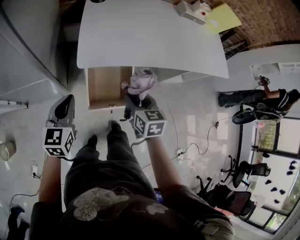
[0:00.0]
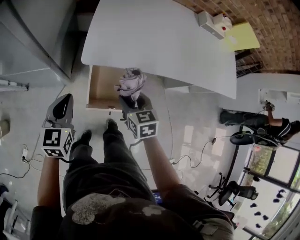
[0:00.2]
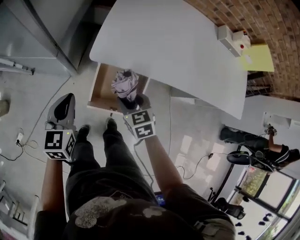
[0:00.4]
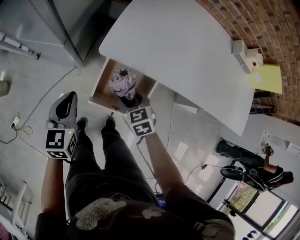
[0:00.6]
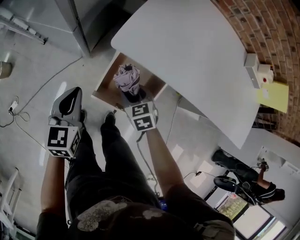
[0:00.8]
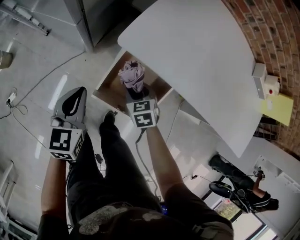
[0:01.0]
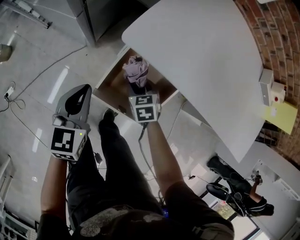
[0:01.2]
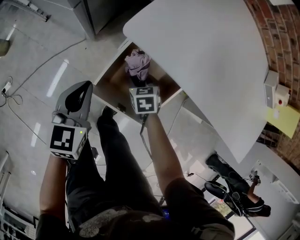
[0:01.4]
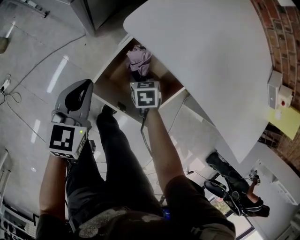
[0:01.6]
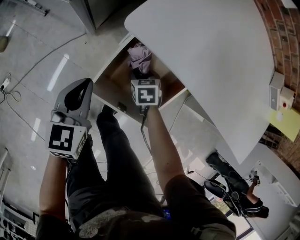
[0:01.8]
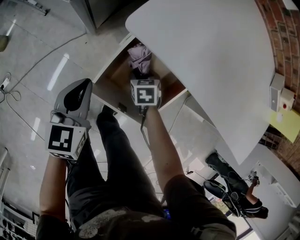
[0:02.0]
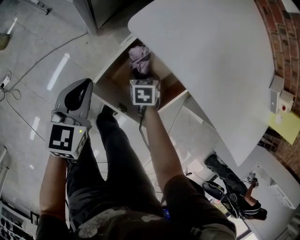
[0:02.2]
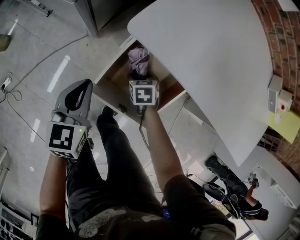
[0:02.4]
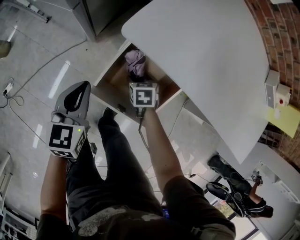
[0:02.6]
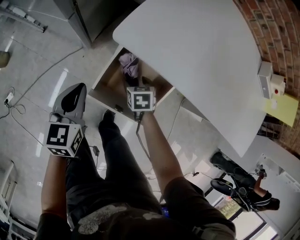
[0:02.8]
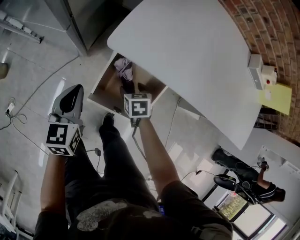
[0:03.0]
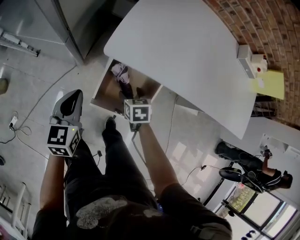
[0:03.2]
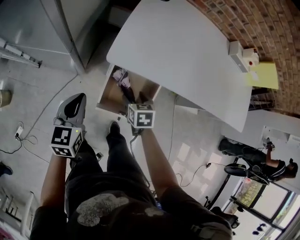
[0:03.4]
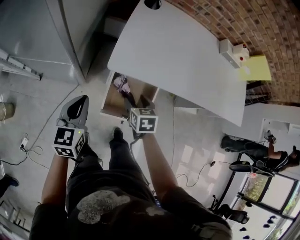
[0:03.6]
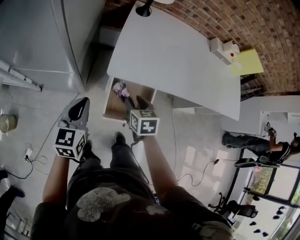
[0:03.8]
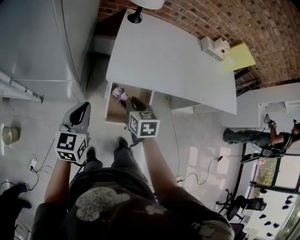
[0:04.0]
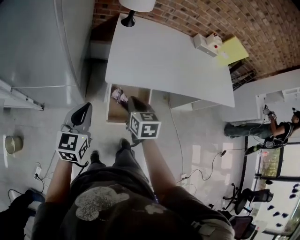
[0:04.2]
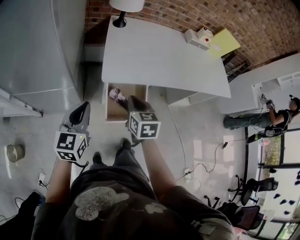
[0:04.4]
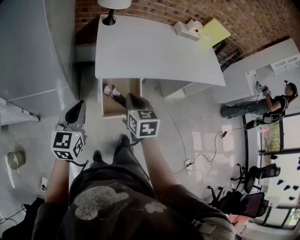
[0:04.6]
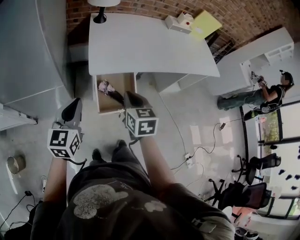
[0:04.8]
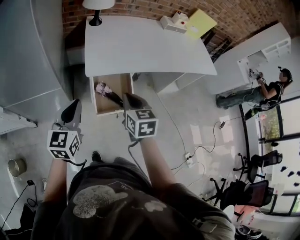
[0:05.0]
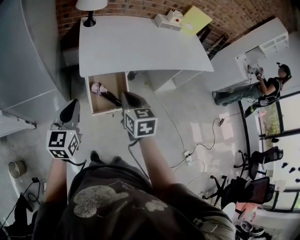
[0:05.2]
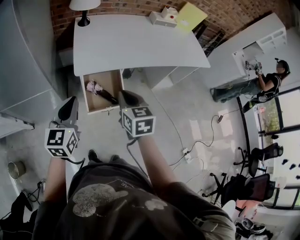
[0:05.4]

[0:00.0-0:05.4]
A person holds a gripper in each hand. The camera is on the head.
0:00.0 to 0:01.4: The left gripper goes approximately 15 cm downward, and swivels roughly 30 degrees; the right gripper shifts approximately 30 cm downward, and swivels roughly 50 degrees.
0:01.4 to 0:02.8: The grippers make only small movements.
0:02.8 to 0:04.0: The right gripper travels upward by approximately 30 cm, turns by about 40 degrees, and closes up. Meanwhile the left gripper moves upward, roughly 20 cm, and rotates roughly 30 degrees.
0:04.0 to 0:05.4: The right gripper shifts about 20 cm upward, backward and to the right. Meanwhile the left gripper shifts roughly 15 cm upward, to the right and backward.

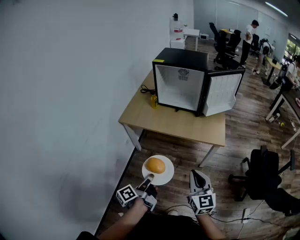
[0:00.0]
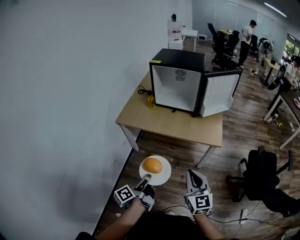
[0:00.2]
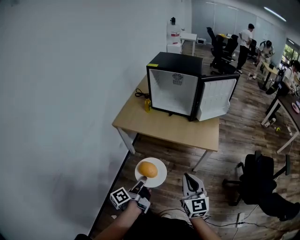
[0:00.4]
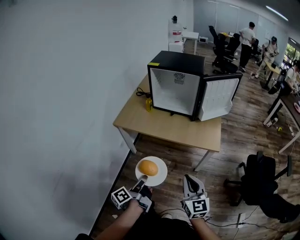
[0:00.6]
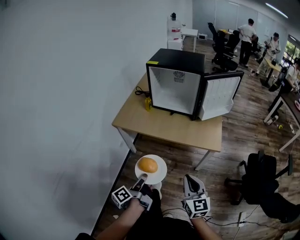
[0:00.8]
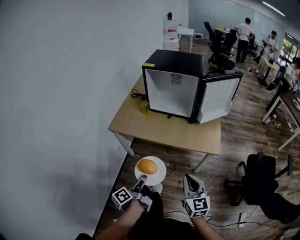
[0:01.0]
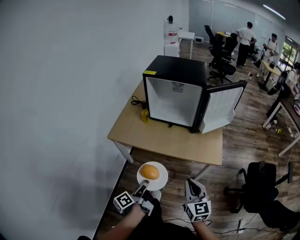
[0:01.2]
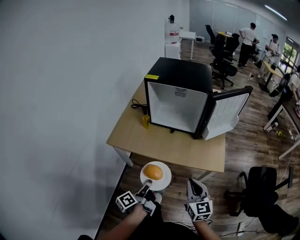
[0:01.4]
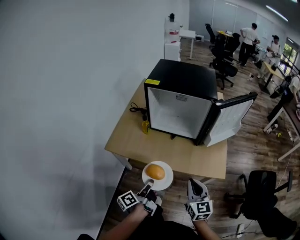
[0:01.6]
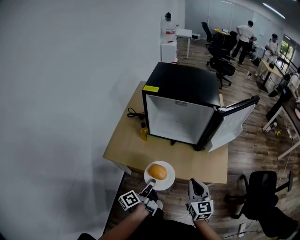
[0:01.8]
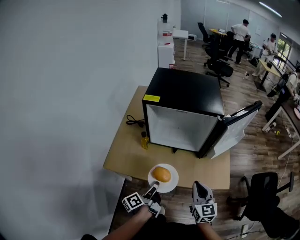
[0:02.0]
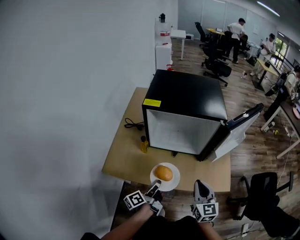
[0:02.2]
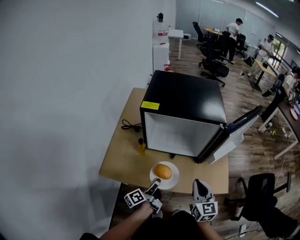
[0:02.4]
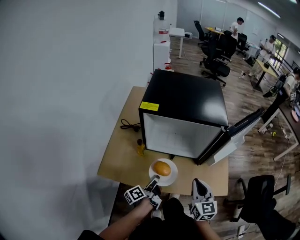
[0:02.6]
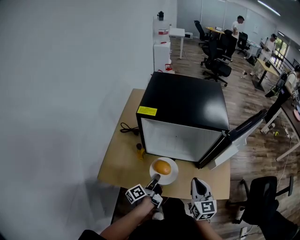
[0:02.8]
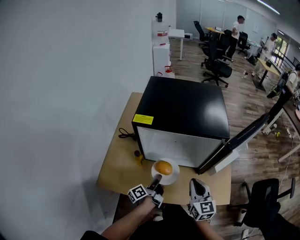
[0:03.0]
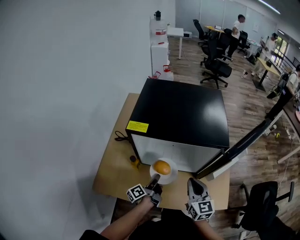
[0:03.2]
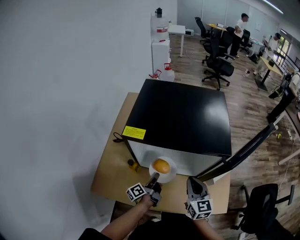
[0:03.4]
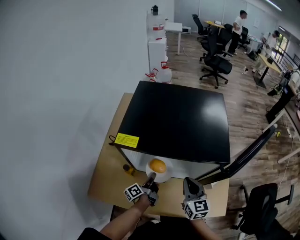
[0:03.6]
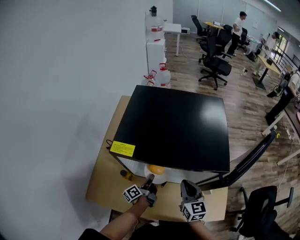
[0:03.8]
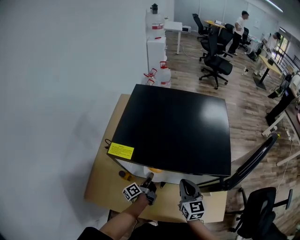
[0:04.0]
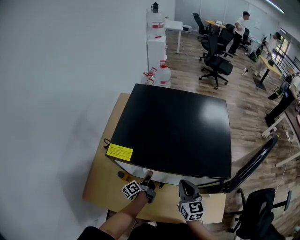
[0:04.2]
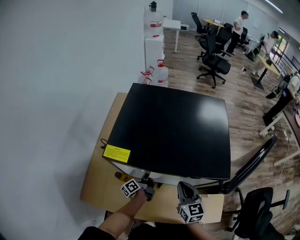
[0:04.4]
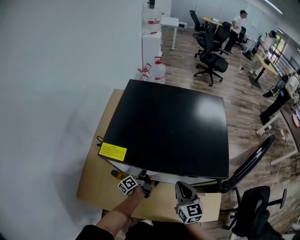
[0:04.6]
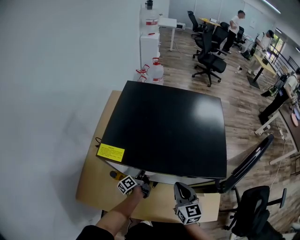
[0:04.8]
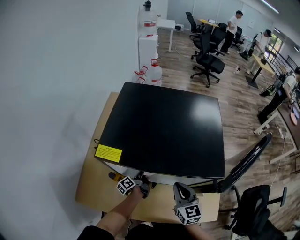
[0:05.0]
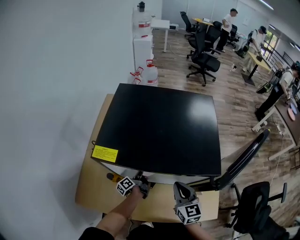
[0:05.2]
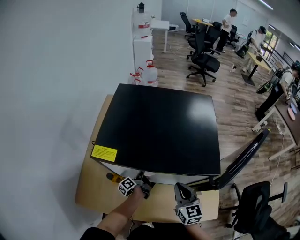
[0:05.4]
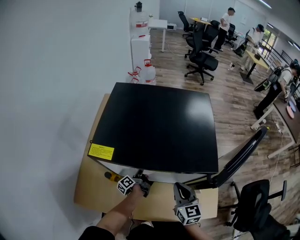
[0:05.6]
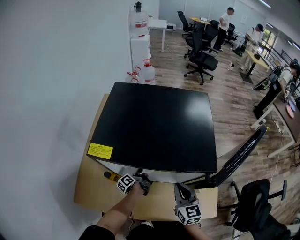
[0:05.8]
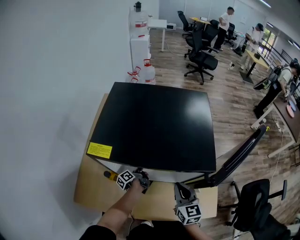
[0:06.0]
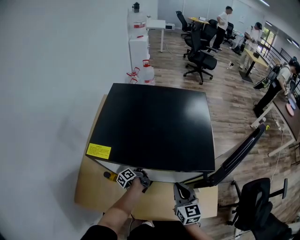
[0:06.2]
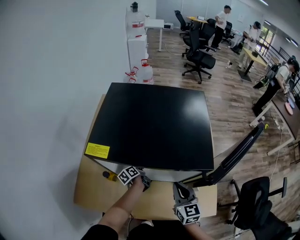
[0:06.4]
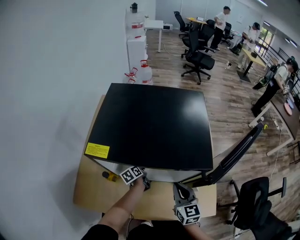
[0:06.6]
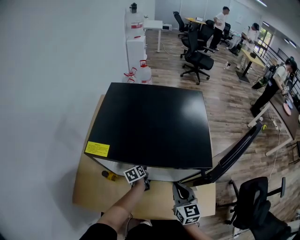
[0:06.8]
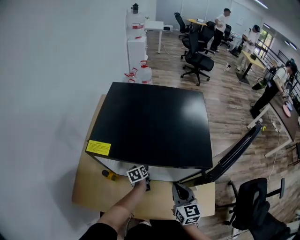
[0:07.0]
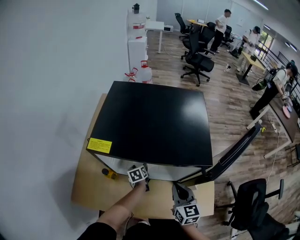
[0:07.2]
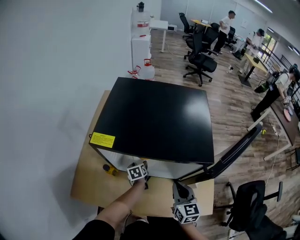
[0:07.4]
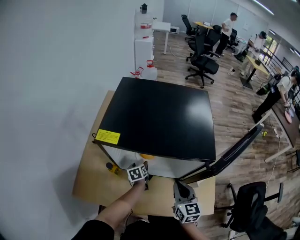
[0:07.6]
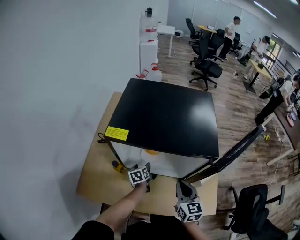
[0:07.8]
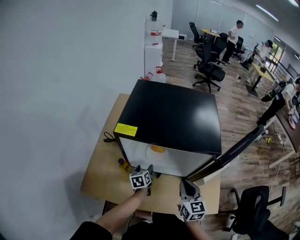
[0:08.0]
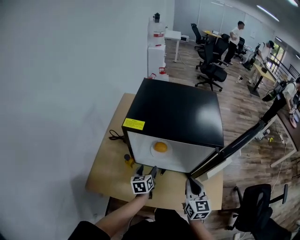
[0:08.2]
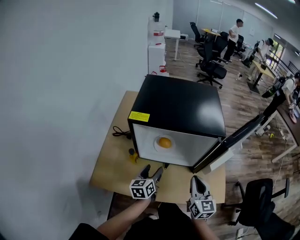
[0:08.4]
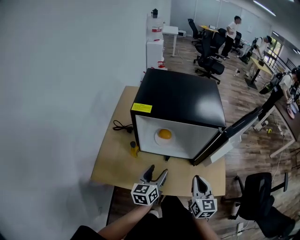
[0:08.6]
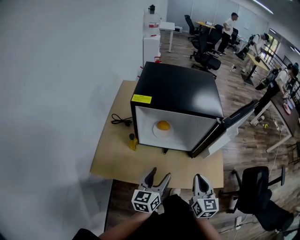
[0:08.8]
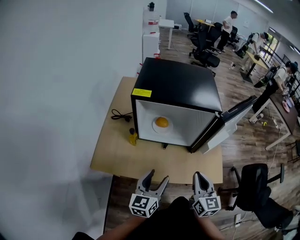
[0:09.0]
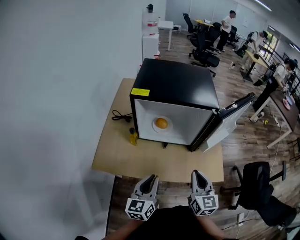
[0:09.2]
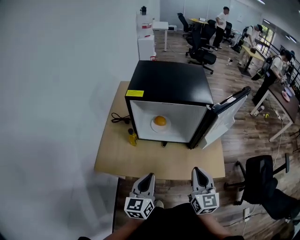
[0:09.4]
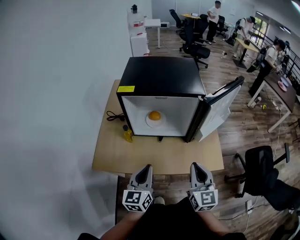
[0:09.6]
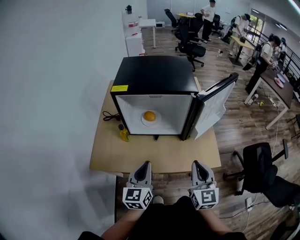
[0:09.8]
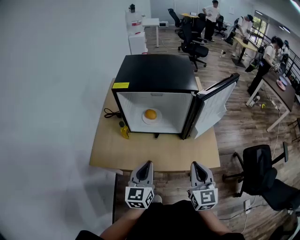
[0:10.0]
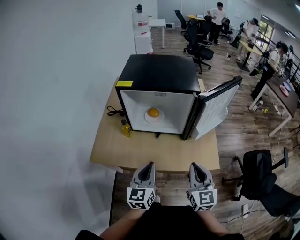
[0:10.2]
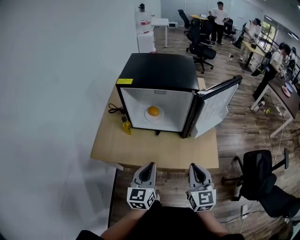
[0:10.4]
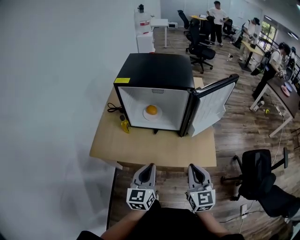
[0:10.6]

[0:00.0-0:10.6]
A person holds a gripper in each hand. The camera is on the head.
0:00.0 to 0:01.6: The grippers both shift forward by approximately 25 cm.
0:01.6 to 0:03.0: The grippers both shift forward by some 25 cm.
0:03.0 to 0:04.6: The left gripper is displaced forward and downward by some 20 cm. The right gripper goes approximately 15 cm forward.
0:04.6 to 0:06.0: The grippers stay close to where they were, moving slightly.
0:06.0 to 0:07.6: The left gripper twists about 50 degrees clockwise, seen from behind, and opens.
0:07.6 to 0:09.0: The right gripper moves backward, roughly 20 cm. The left gripper shifts some 40 cm backward and upward, and angles its fingers upward, by roughly 40 degrees.
0:09.0 to 0:10.6: The grippers both shift backward and to the right by roughly 10 cm. The left gripper closes up.

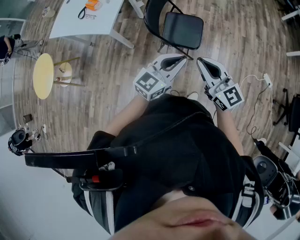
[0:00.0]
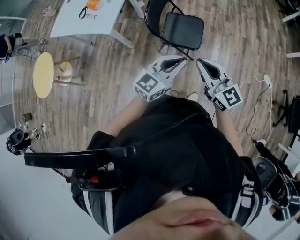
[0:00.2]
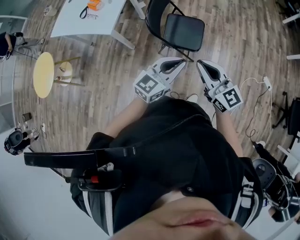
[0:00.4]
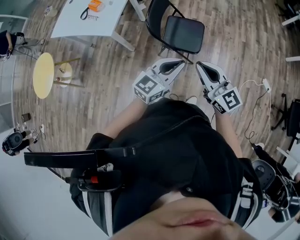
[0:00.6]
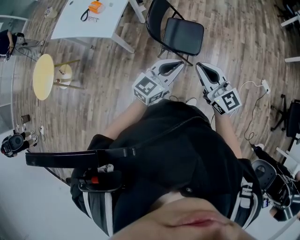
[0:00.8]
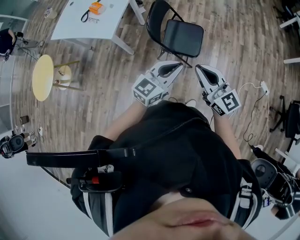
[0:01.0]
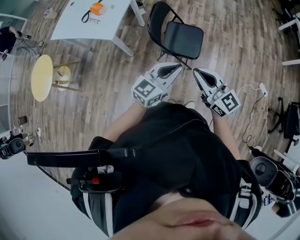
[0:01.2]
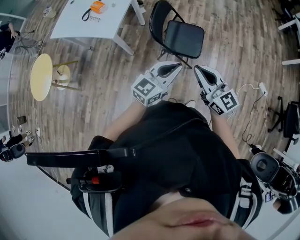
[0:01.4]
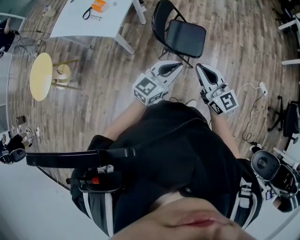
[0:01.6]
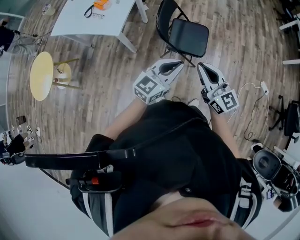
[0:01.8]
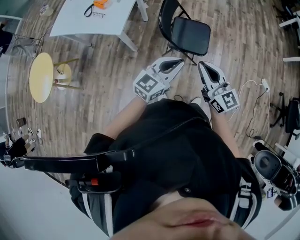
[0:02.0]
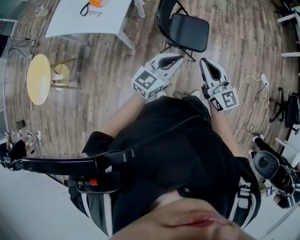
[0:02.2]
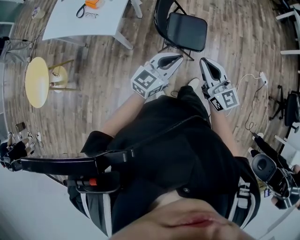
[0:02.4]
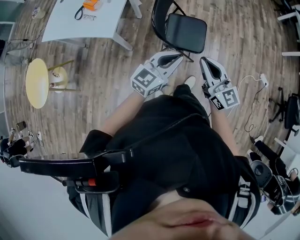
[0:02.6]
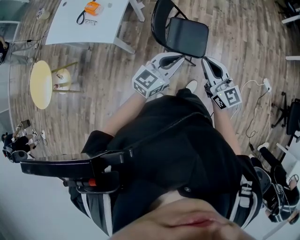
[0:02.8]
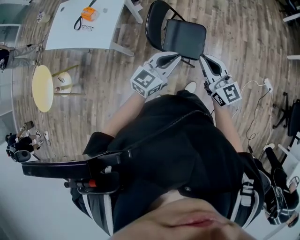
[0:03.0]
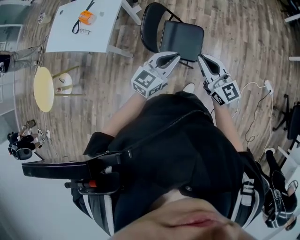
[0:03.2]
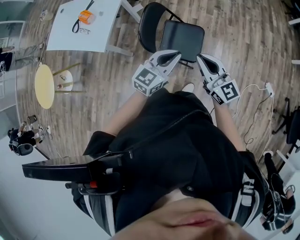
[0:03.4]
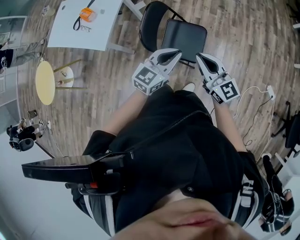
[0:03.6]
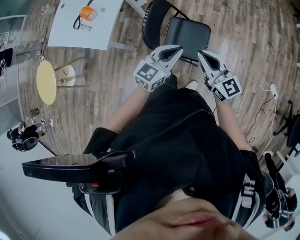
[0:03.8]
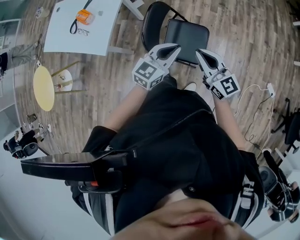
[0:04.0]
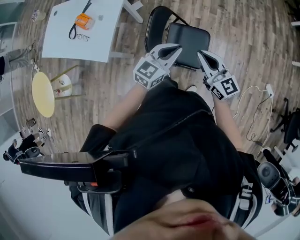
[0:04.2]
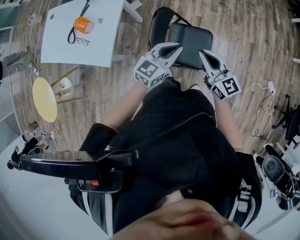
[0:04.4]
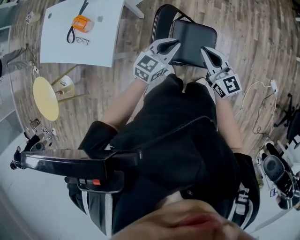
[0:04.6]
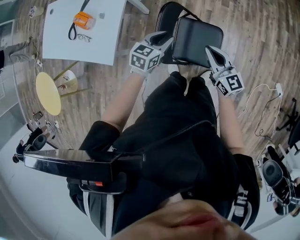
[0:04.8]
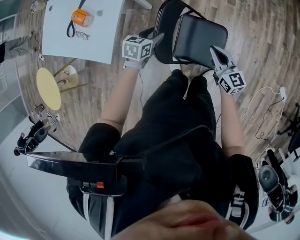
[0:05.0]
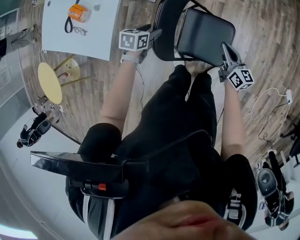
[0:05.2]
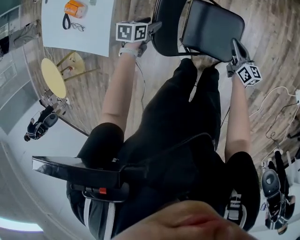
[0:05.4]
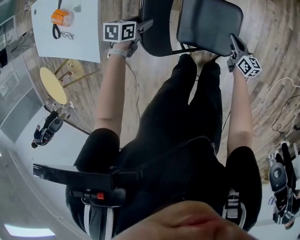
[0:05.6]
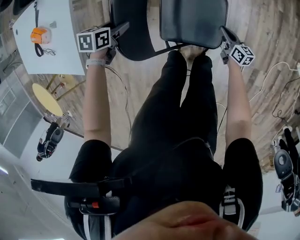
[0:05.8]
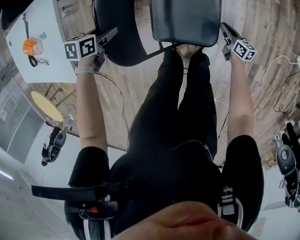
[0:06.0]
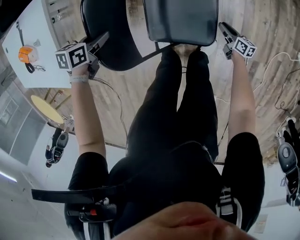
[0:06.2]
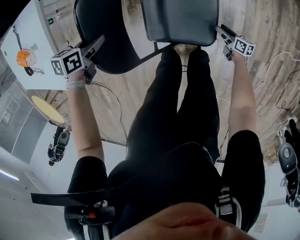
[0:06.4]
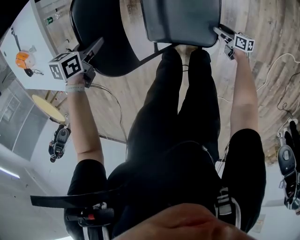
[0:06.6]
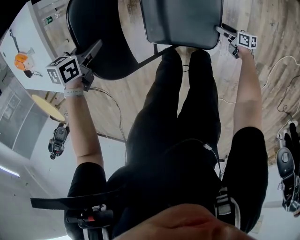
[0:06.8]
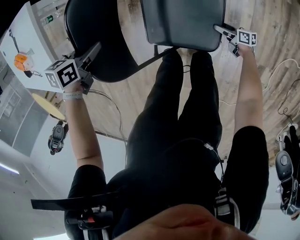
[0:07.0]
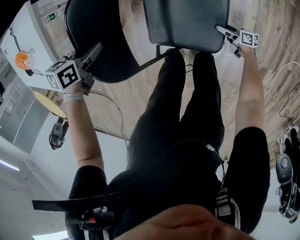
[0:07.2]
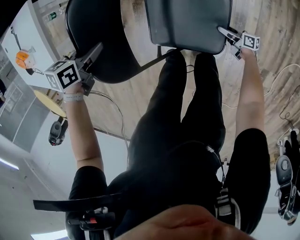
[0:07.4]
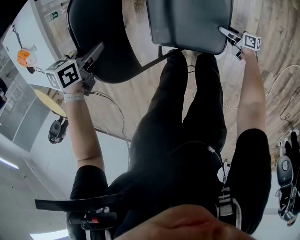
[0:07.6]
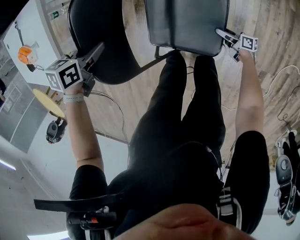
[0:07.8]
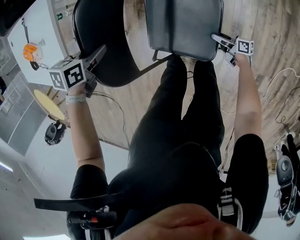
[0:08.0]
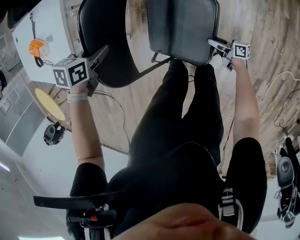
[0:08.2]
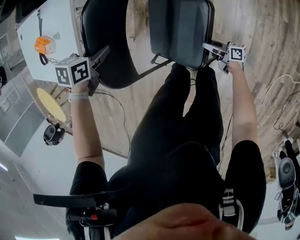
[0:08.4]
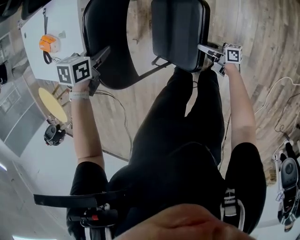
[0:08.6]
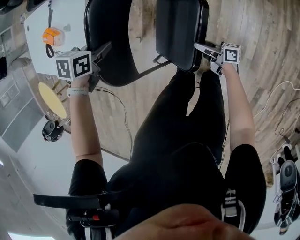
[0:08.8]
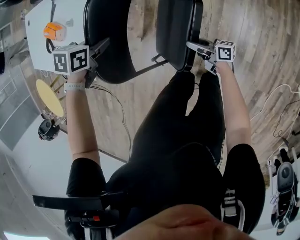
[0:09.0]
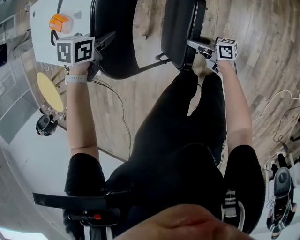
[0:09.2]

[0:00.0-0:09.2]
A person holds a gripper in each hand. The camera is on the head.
0:00.0 to 0:01.6: The grippers both shift to the left by roughly 10 cm.
0:01.6 to 0:03.0: Both grippers move forward, about 20 cm.
0:03.0 to 0:04.6: Both grippers travel together forward and downward, roughly 25 cm.
0:04.6 to 0:06.2: The right gripper shifts roughly 60 cm downward and to the right, and twists approximately 50 degrees clockwise, seen from behind. The left gripper moves downward, some 30 cm, angles its fingers downward, by some 40 degrees, and opens, then closes once more.
0:06.2 to 0:07.6: The right gripper travels downward by some 10 cm, rotates about 30 degrees, and opens its fingers.
0:07.6 to 0:09.2: The left gripper shifts about 15 cm upward. Meanwhile the right gripper goes some 30 cm upward, rotates approximately 30 degrees, and closes.
